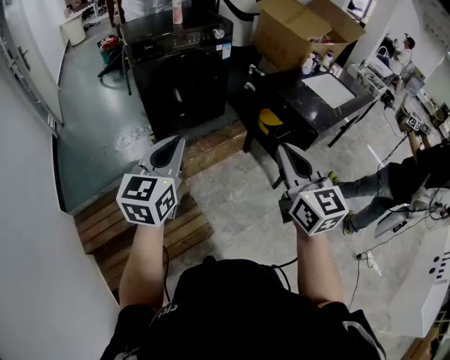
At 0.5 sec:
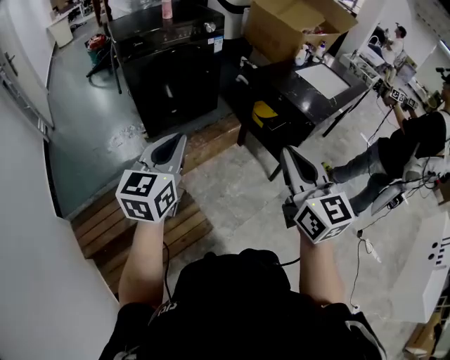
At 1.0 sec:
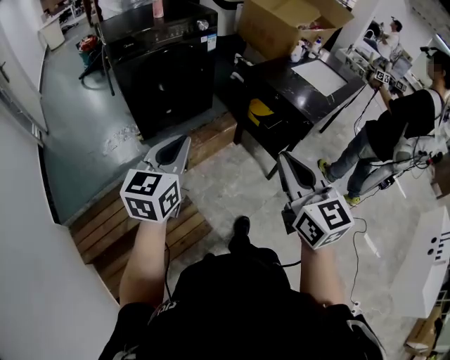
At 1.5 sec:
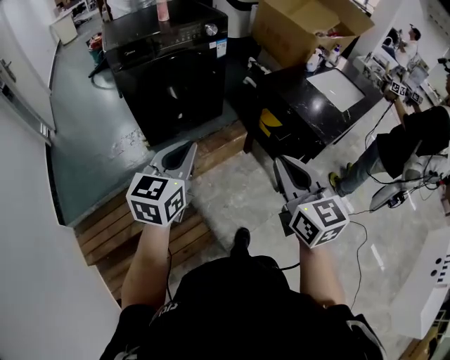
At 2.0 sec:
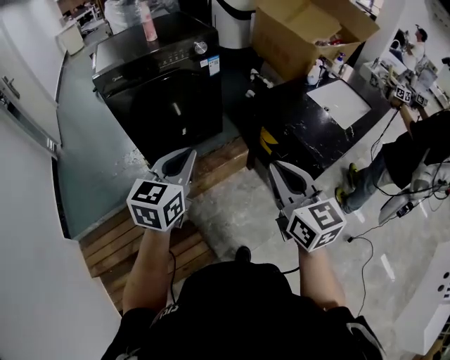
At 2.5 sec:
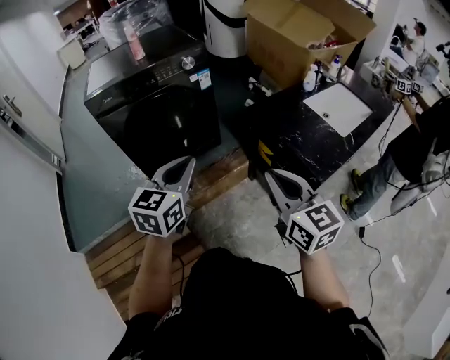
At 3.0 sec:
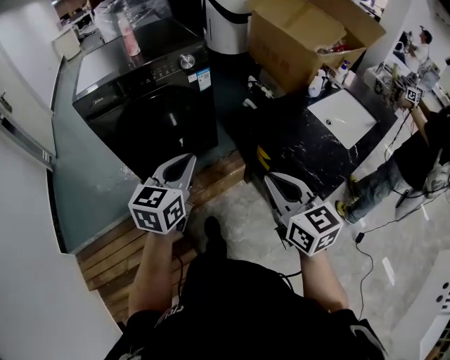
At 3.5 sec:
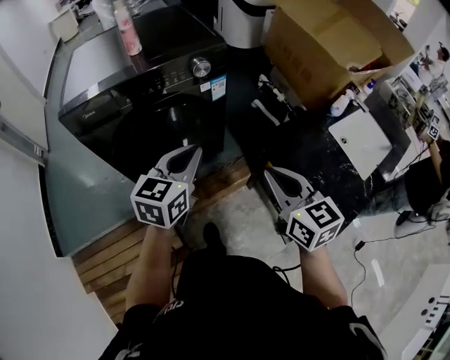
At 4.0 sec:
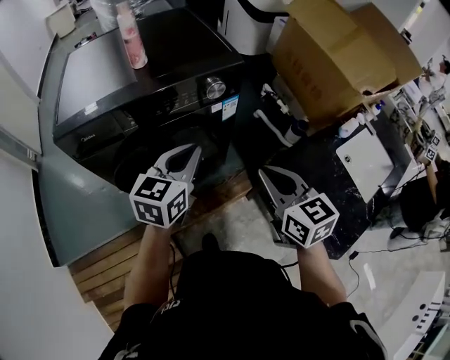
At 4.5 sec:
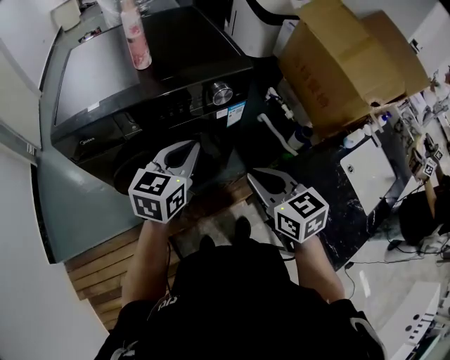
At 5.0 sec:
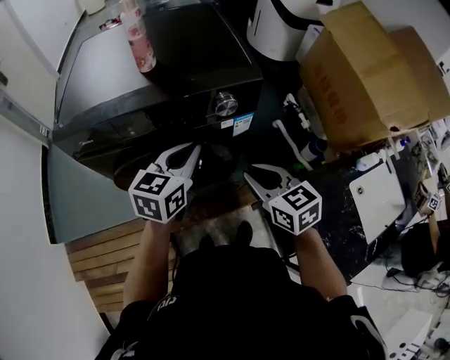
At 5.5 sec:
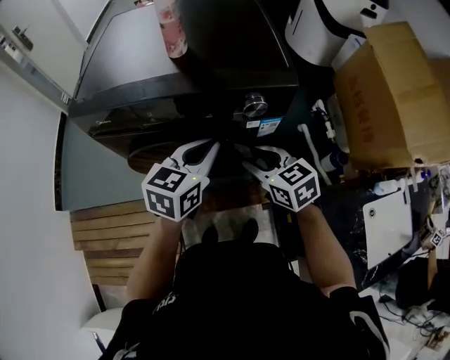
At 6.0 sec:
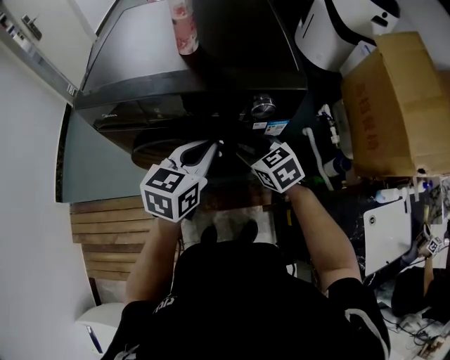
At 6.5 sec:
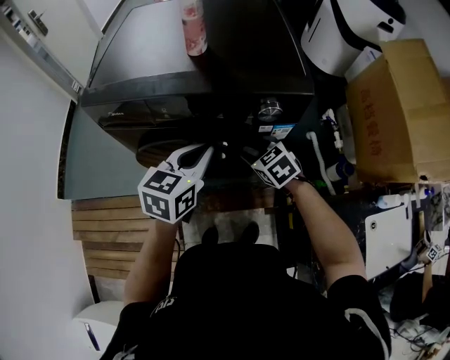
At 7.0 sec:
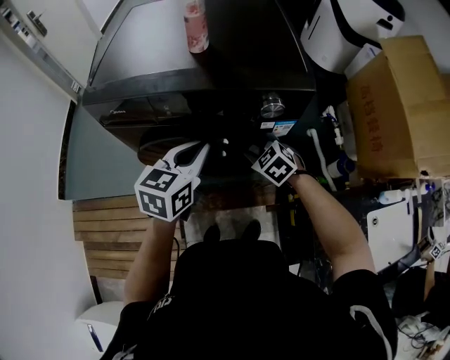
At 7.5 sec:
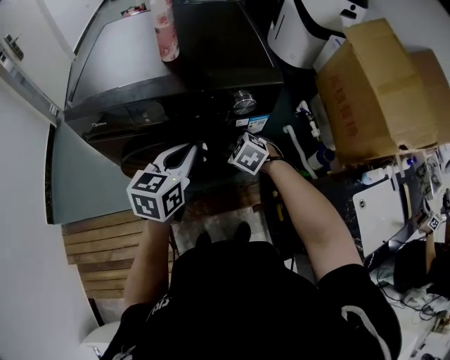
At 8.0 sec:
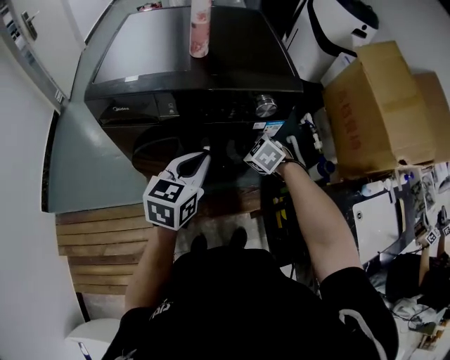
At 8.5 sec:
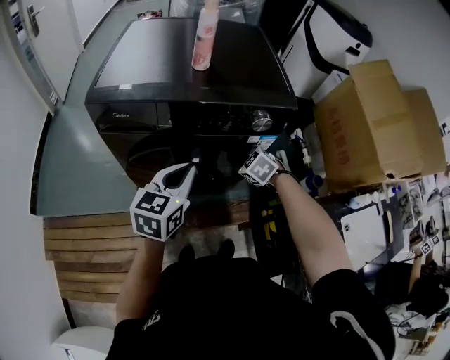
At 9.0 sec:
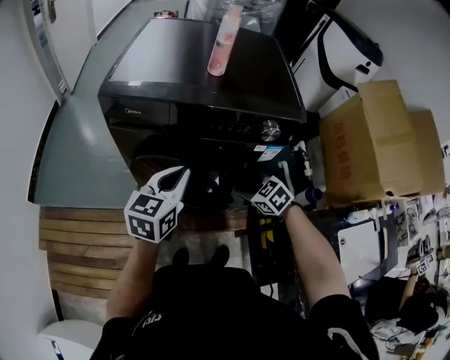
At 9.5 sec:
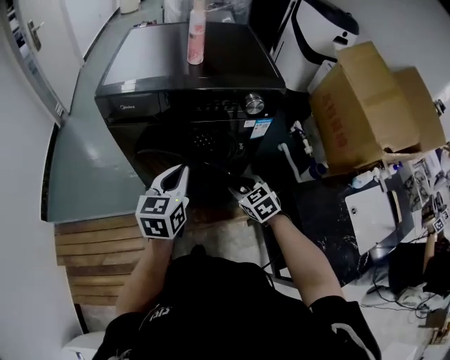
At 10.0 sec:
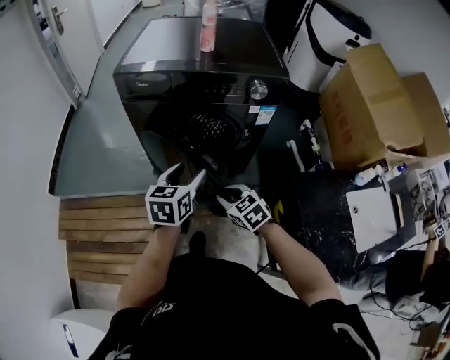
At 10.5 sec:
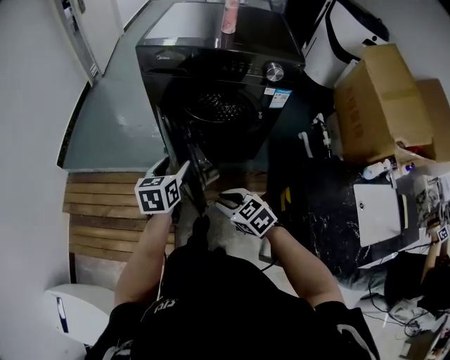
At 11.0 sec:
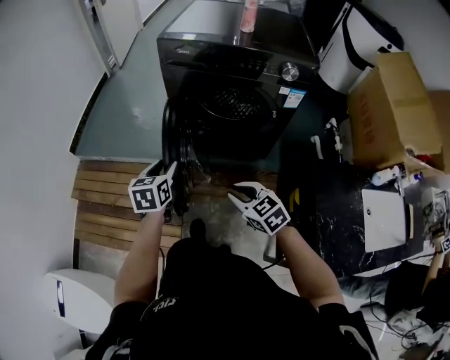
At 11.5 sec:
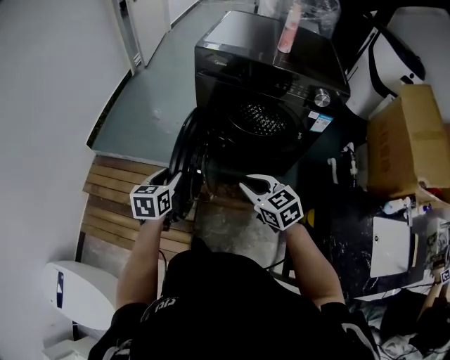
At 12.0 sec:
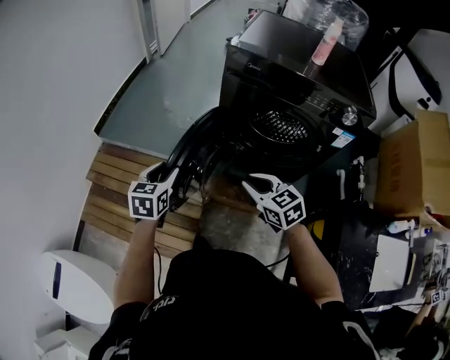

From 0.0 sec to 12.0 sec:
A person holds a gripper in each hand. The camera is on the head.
From 0.0 sec to 2.0 sec: The right gripper heads forward, covering approximately 20 cm, while the left gripper is displaced forward and to the right by approximately 25 cm.
From 2.0 sec to 4.0 sec: The grippers both shift forward by about 40 cm.
From 4.0 sec to 6.0 sec: The left gripper heads forward, covering roughly 10 cm. Meanwhile the right gripper heads forward and downward, covering roughly 25 cm, turns by roughly 40 degrees, and opens its fingers.
From 6.0 sec to 8.0 sec: The right gripper is displaced downward by roughly 5 cm, and turns by about 20 degrees; the left gripper changes place by roughly 5 cm.
From 8.0 sec to 10.0 sec: The left gripper travels backward by roughly 10 cm, and opens its fingers; the right gripper travels backward by about 25 cm, and changes its angle by roughly 20 degrees.
From 10.0 sec to 12.0 sec: The left gripper travels to the left by approximately 35 cm, and changes its angle by roughly 20 degrees; the right gripper goes roughly 15 cm to the left.

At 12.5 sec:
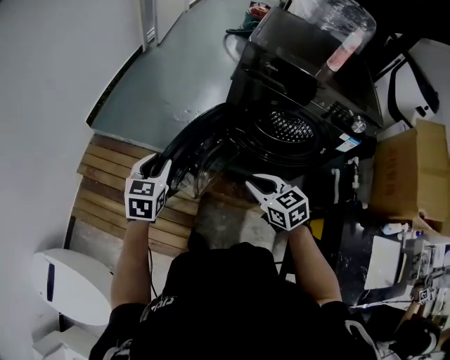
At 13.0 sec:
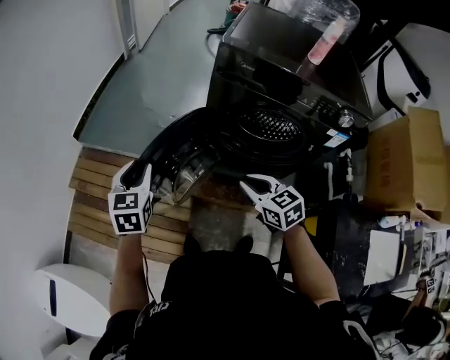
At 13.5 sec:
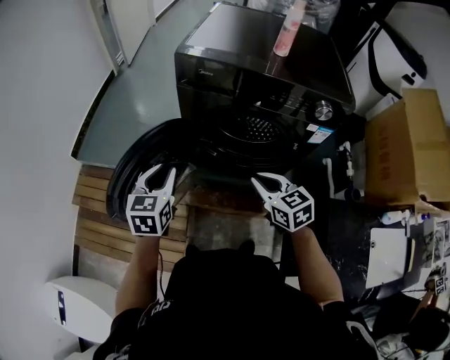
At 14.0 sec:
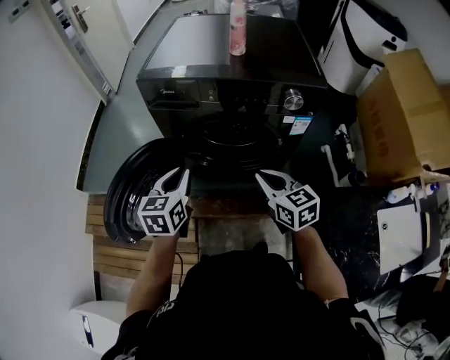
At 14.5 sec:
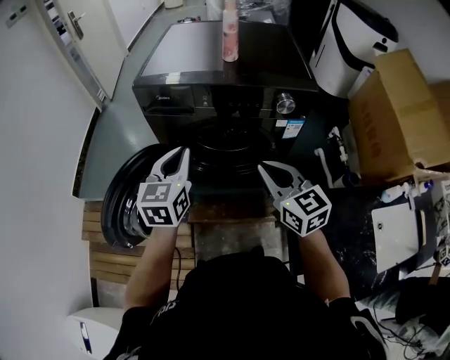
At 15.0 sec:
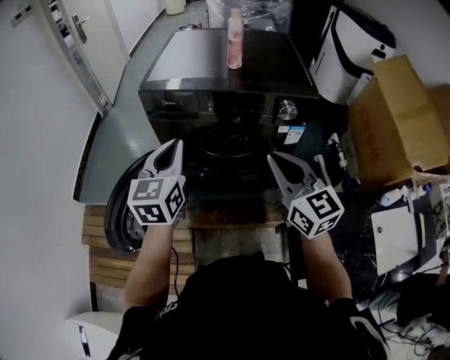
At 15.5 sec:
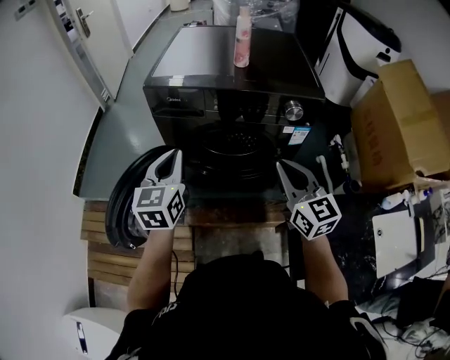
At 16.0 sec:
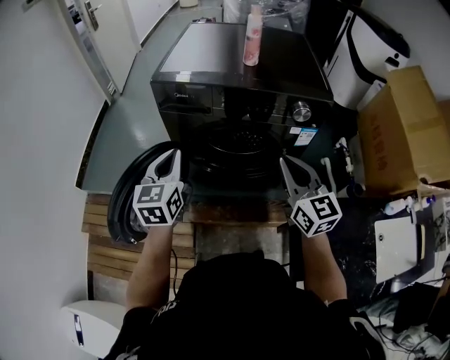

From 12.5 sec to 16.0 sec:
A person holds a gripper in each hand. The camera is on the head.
From 12.5 sec to 14.5 sec: Both grippers travel together to the right and upward, about 35 cm. The left gripper turns by some 20 degrees, and closes up. The right gripper swivels some 30 degrees.
From 14.5 sec to 16.0 sec: The left gripper moves to the left, approximately 5 cm.

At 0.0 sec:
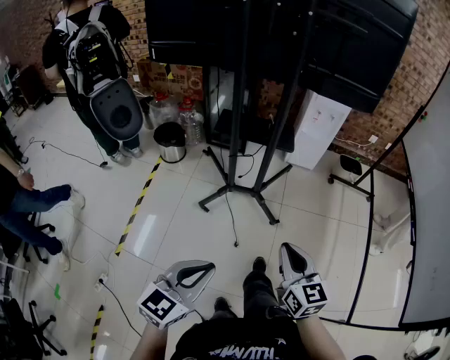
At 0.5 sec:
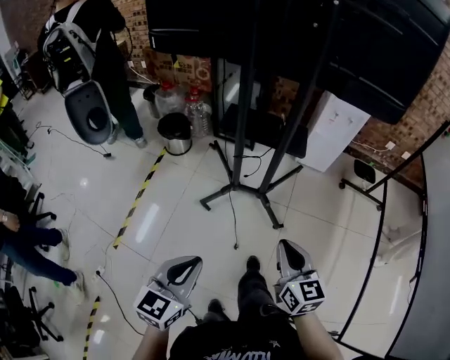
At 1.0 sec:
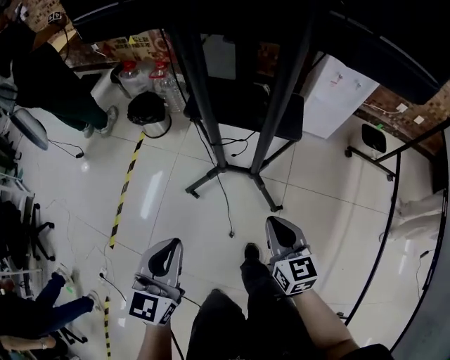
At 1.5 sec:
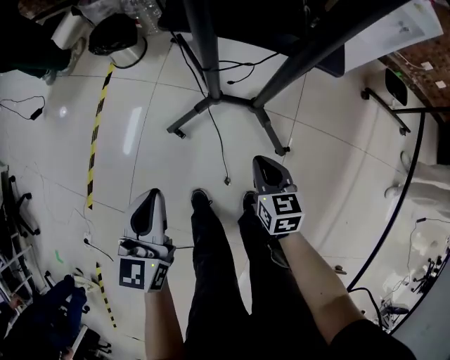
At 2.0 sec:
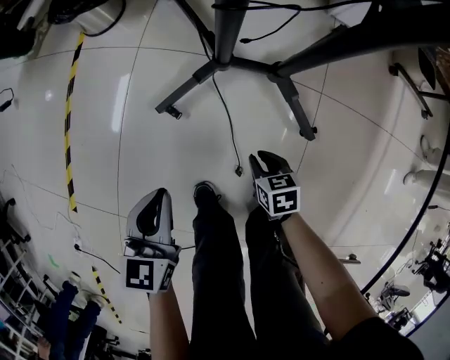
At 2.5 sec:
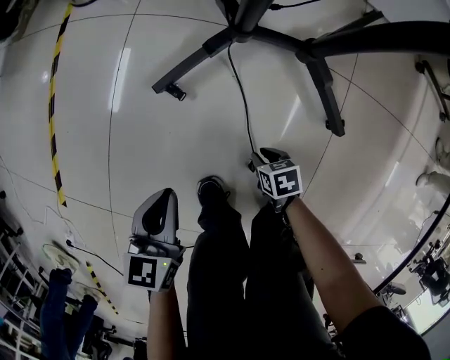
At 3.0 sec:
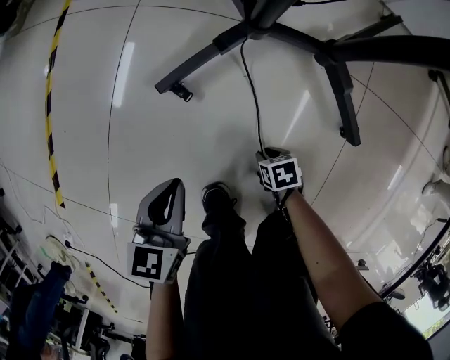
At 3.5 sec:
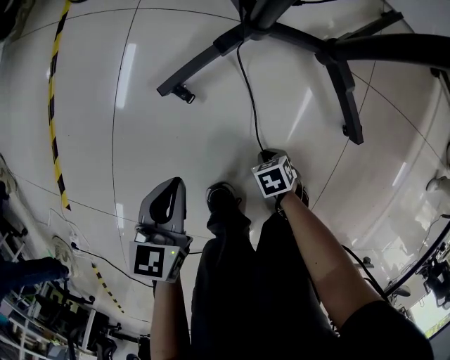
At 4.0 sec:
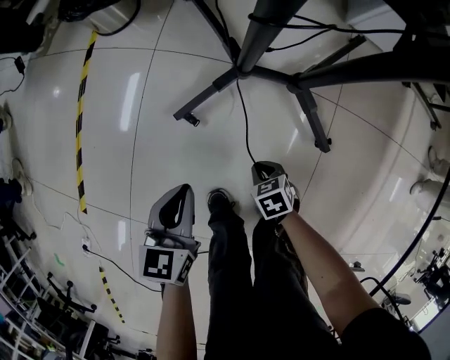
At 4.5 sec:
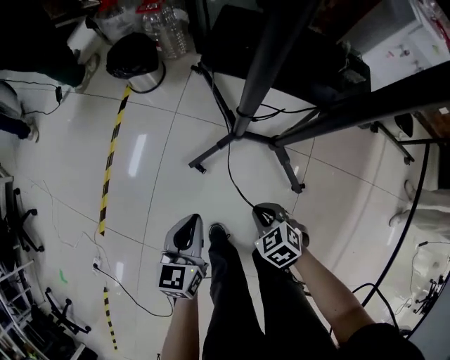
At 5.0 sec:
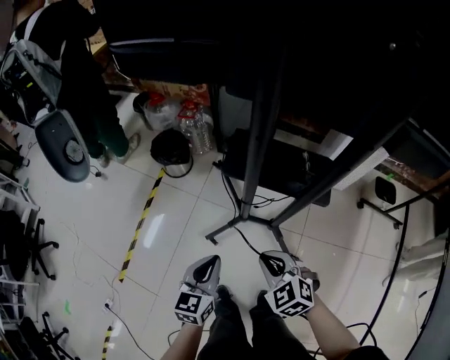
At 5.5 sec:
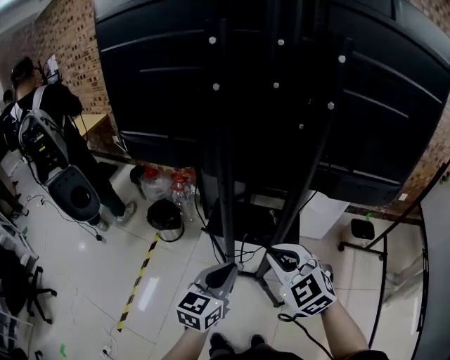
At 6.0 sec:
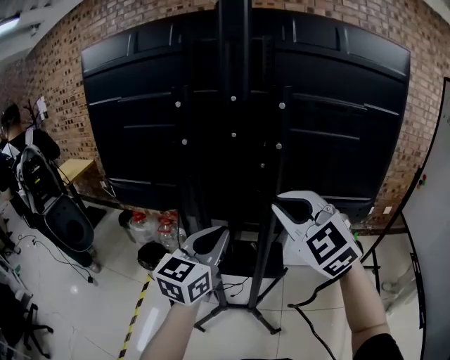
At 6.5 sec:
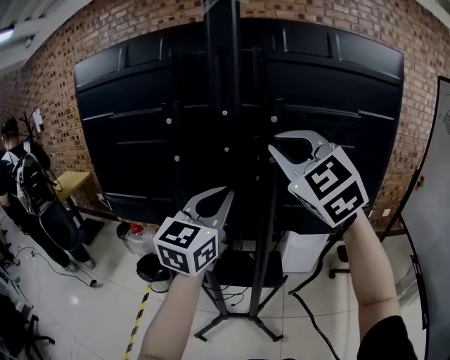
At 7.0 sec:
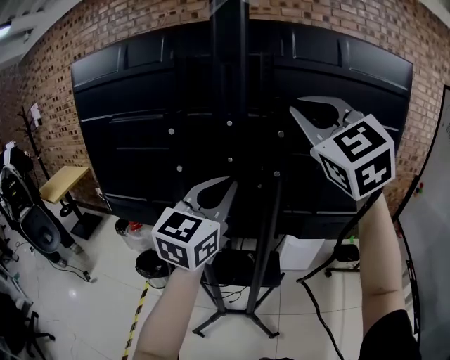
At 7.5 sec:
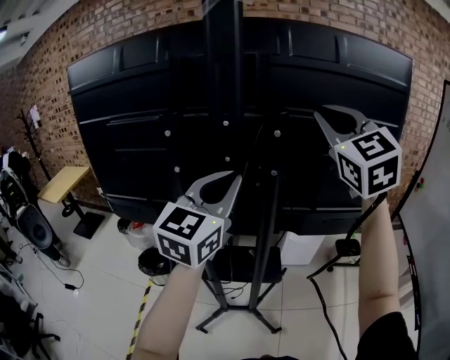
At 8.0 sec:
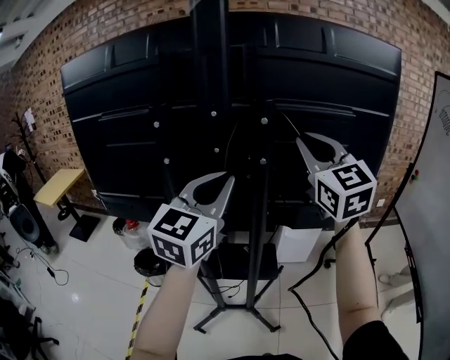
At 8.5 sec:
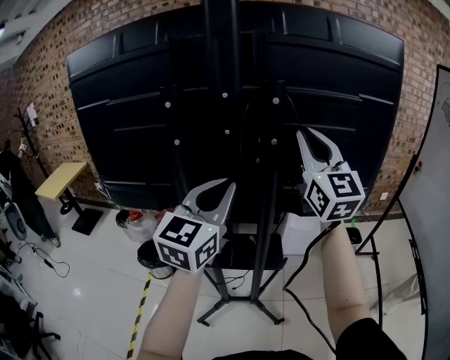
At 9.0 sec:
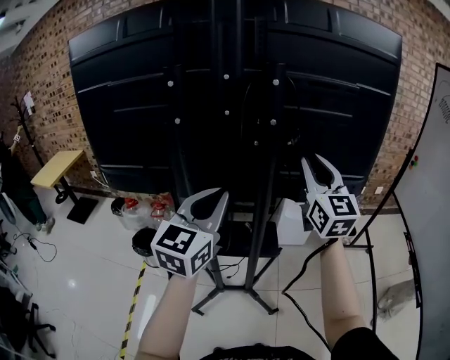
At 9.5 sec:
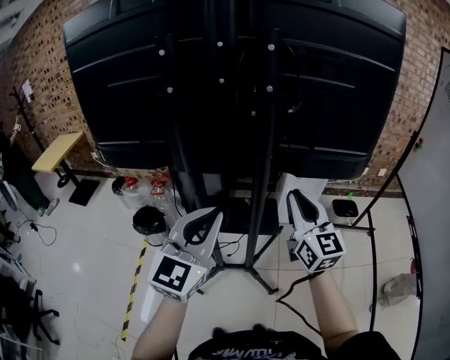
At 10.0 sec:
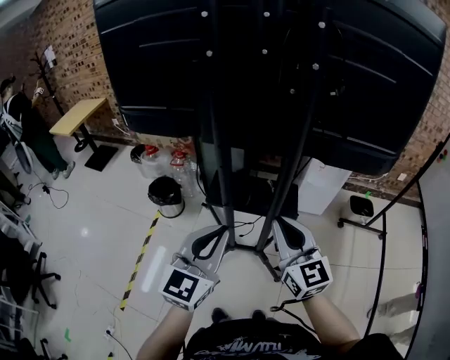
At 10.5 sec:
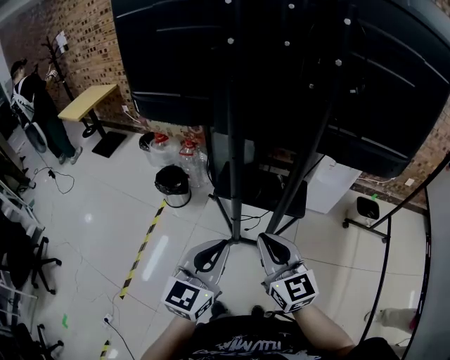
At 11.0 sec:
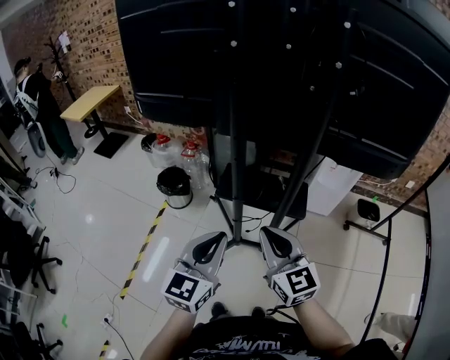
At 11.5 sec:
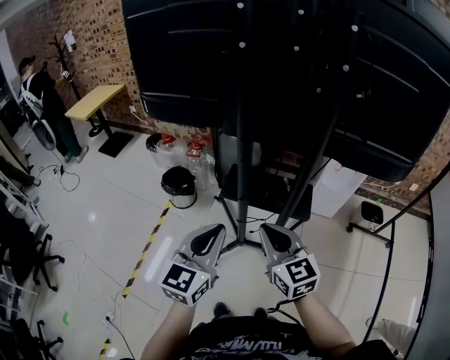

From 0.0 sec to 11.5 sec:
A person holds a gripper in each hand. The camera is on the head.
From 0.0 sec to 2.0 sec: The left gripper shifts about 50 cm downward and forward, and swivels approximately 40 degrees, while the right gripper is displaced downward by approximately 60 cm, and tilts its fingers some 50 degrees downward.
From 2.0 sec to 4.0 sec: The right gripper goes downward and returns, roughly 20 cm each way, and changes its angle by about 20 degrees. Meanwhile the left gripper travels downward and back again, about 15 cm each way.
From 4.0 sec to 6.0 sec: The grippers both shift upward by some 80 cm. The left gripper angles its fingers upward, by some 40 degrees; the right gripper angles its fingers upward, by some 60 degrees.
From 6.0 sec to 7.5 sec: The left gripper is displaced upward by approximately 15 cm; the right gripper shifts about 25 cm upward, forward and to the right, and swivels approximately 30 degrees.
From 7.5 sec to 9.5 sec: The left gripper goes about 25 cm downward and backward; the right gripper goes some 35 cm downward, and rotates about 30 degrees.
From 9.5 sec to 11.5 sec: The right gripper shifts about 25 cm to the left, downward and backward, and swivels some 30 degrees. The left gripper shifts approximately 15 cm downward, to the left and backward, and rotates approximately 20 degrees.
